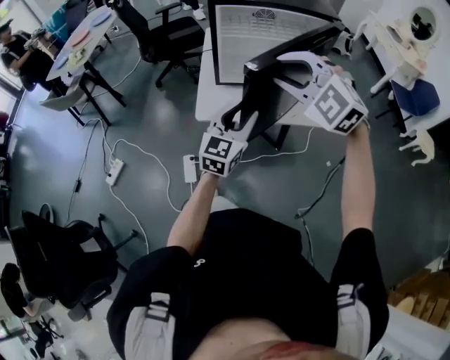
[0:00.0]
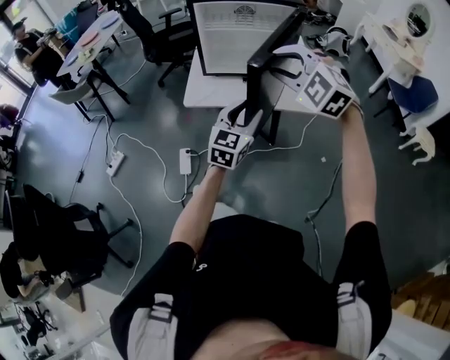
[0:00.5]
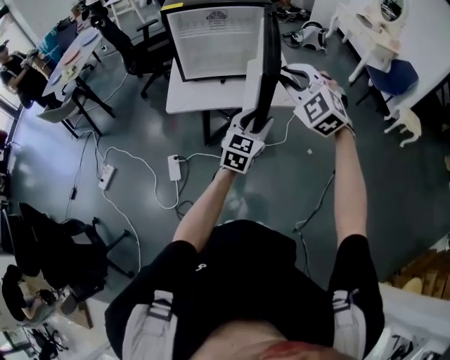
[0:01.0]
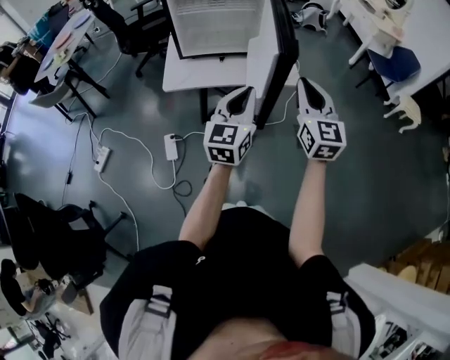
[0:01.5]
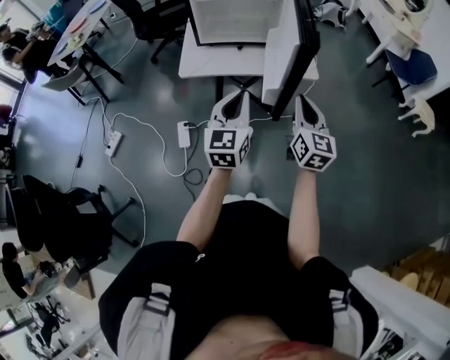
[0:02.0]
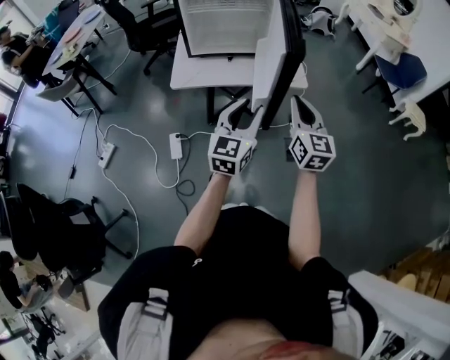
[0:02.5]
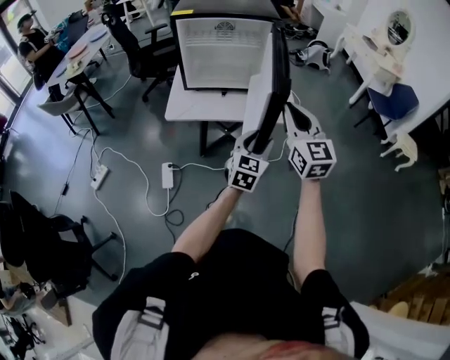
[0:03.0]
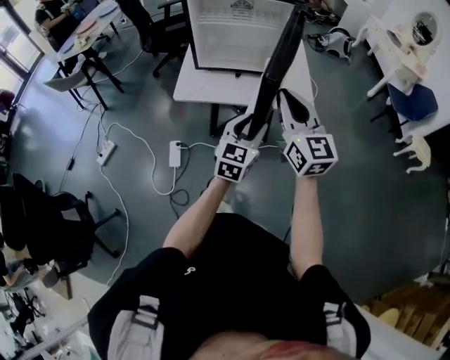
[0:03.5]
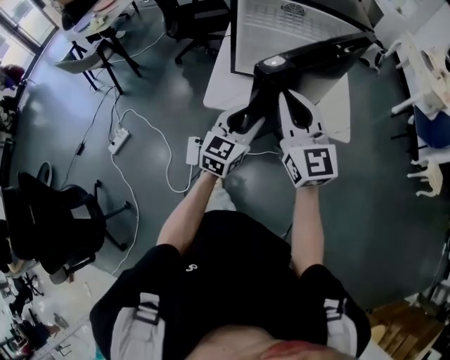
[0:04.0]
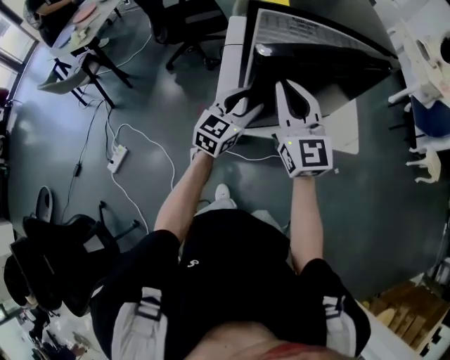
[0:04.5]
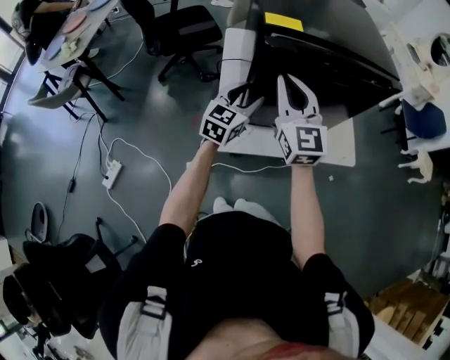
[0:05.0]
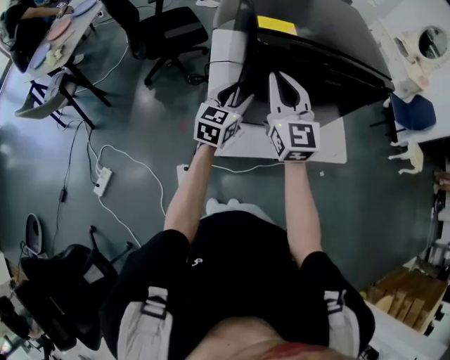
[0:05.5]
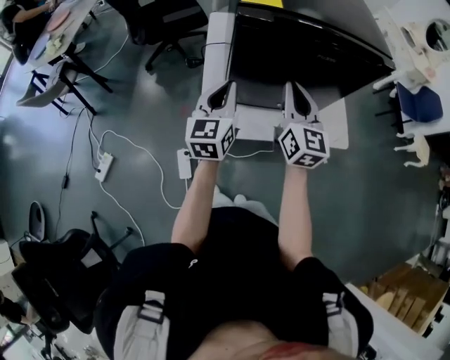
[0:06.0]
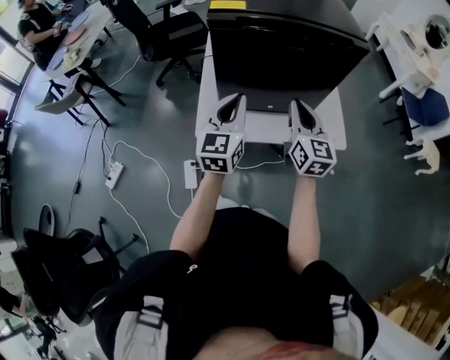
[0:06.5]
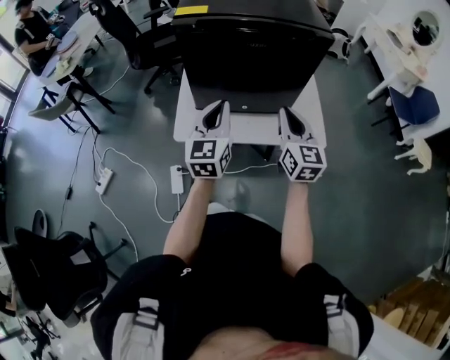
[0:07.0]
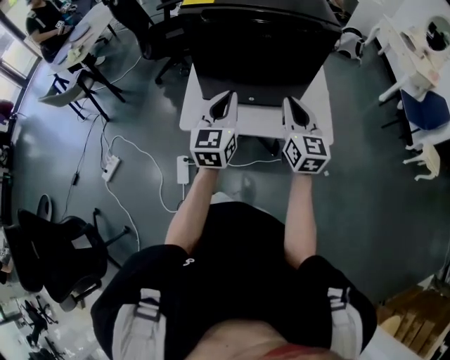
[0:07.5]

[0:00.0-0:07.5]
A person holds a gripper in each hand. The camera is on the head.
0:00.0 to 0:02.0: The left gripper goes roughly 20 cm backward and to the right, and closes. Meanwhile the right gripper moves to the right, backward and downward, roughly 30 cm, rotates around the line of its fingers by about 70 degrees, clockwise from behind, and closes up.
0:02.0 to 0:04.0: The right gripper shifts roughly 30 cm to the left, forward and upward, and swivels approximately 30 degrees. The left gripper shifts some 20 cm forward and to the left, and opens up.
0:04.0 to 0:05.5: Both grippers move forward and to the left, approximately 30 cm.
0:05.5 to 0:07.5: The left gripper travels backward and to the right by approximately 20 cm, turns by about 20 degrees, and closes its fingers. Meanwhile the right gripper shifts roughly 30 cm to the right and backward.

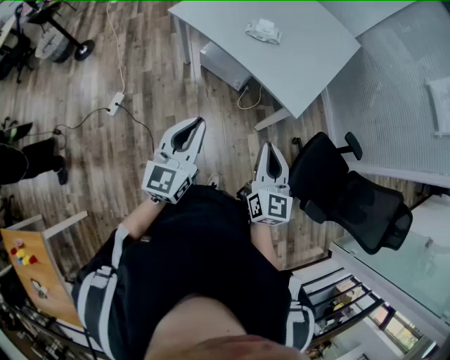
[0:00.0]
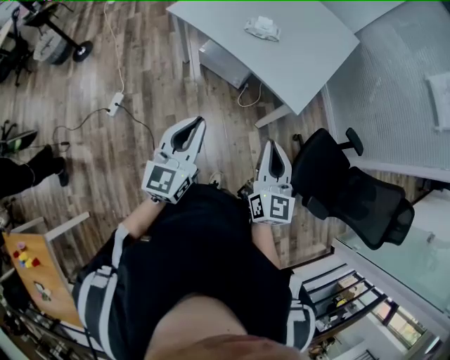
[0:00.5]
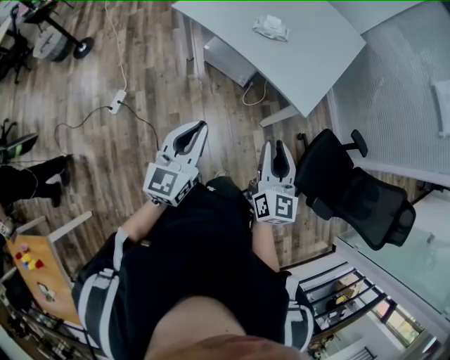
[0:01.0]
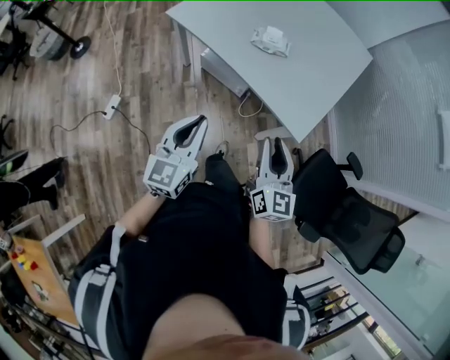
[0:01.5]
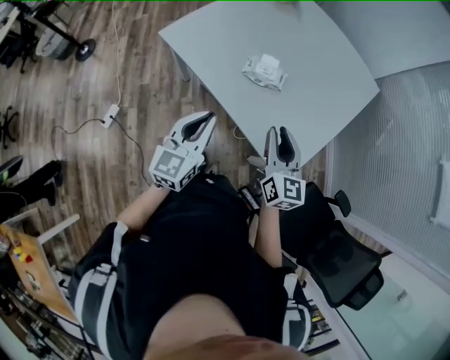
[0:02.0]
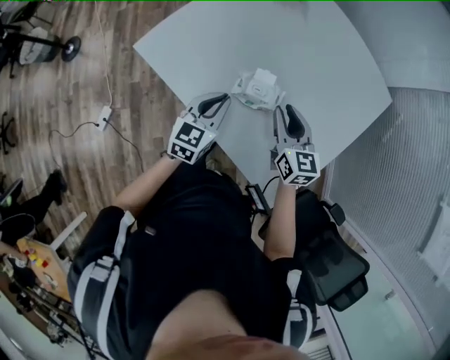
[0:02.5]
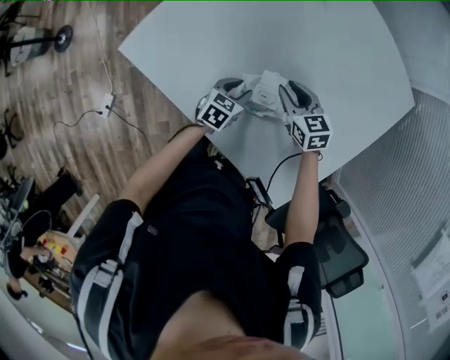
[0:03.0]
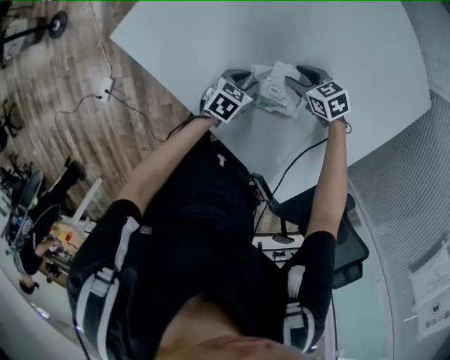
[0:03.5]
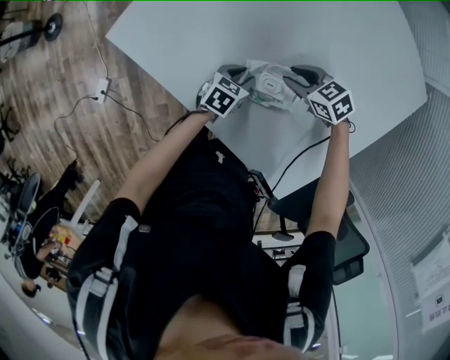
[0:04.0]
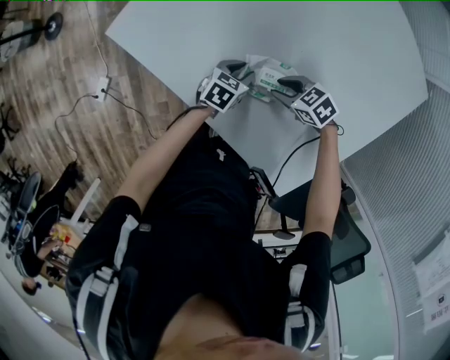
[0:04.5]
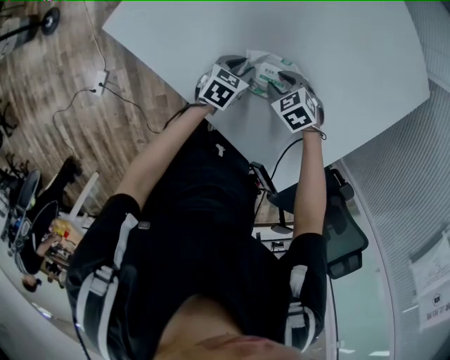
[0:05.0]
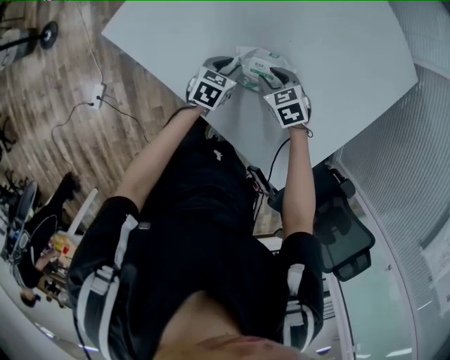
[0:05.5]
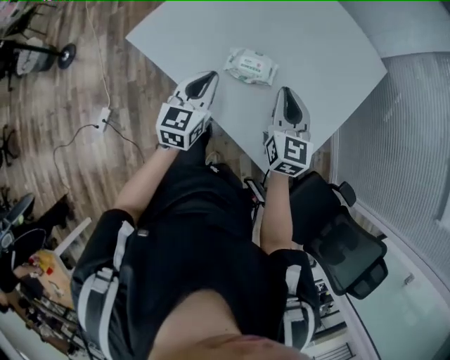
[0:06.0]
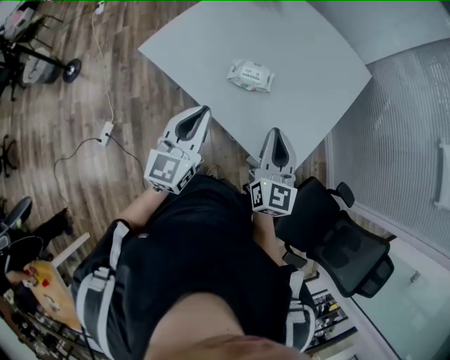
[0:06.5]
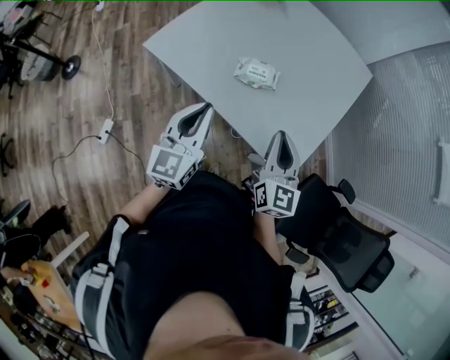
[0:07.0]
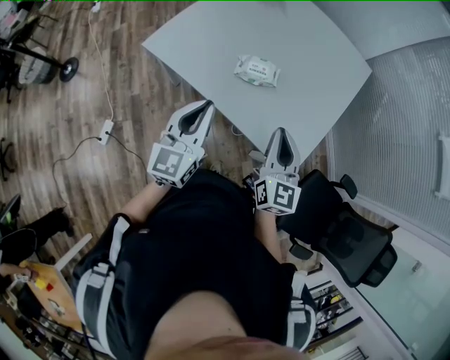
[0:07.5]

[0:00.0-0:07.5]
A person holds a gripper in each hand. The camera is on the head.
0:00.0 to 0:02.0: The two grippers go some 40 cm forward. The right gripper opens.
0:02.0 to 0:04.0: The two grippers travel together, about 40 cm. The left gripper points its fingers some 40 degrees further downward, and opens up. The right gripper angles its fingers downward, by about 40 degrees.
0:04.0 to 0:05.5: The right gripper shifts by roughly 10 cm, and changes its angle by approximately 20 degrees.
0:05.5 to 0:07.5: The two grippers go some 50 cm upward and backward. The left gripper tilts its fingers about 40 degrees upward, and closes up. Meanwhile the right gripper tips its fingers upward by about 50 degrees, and closes up.

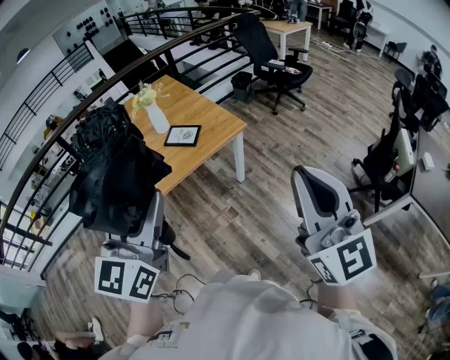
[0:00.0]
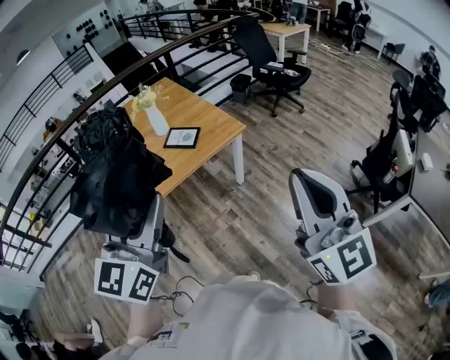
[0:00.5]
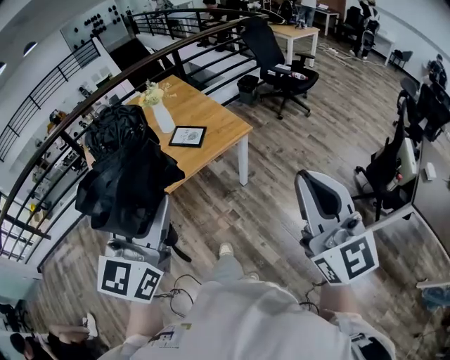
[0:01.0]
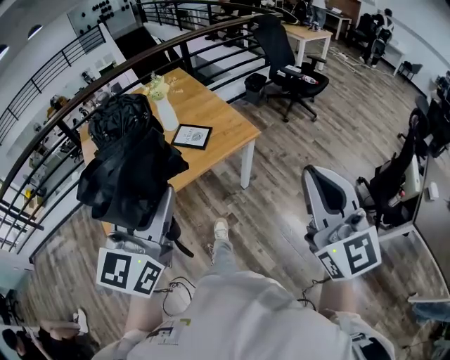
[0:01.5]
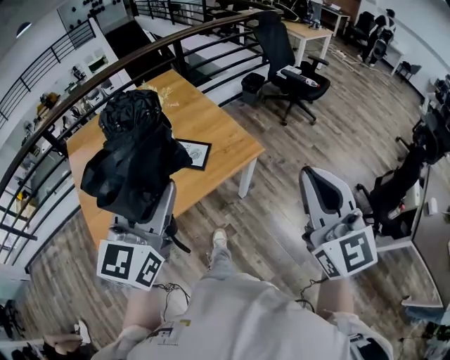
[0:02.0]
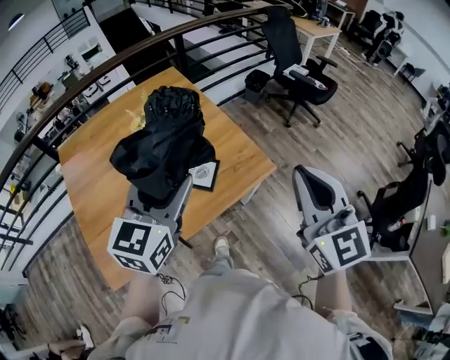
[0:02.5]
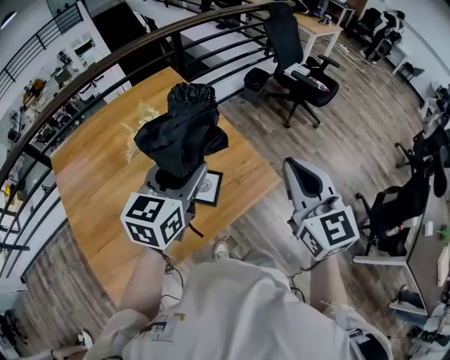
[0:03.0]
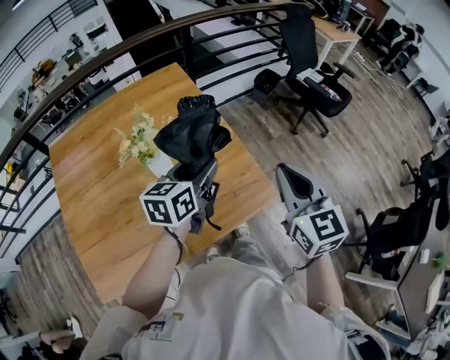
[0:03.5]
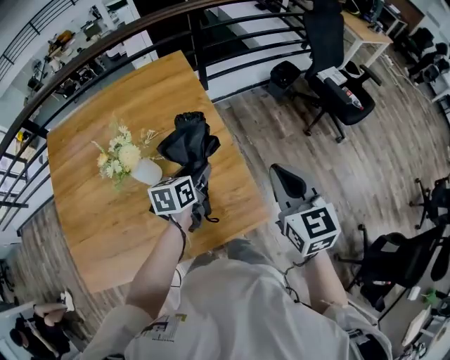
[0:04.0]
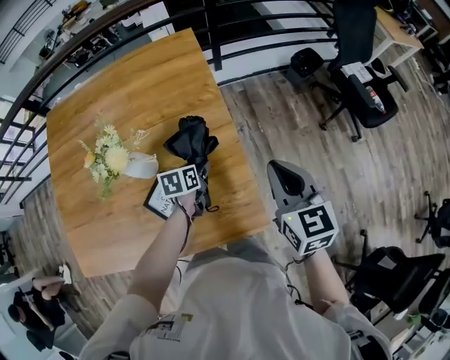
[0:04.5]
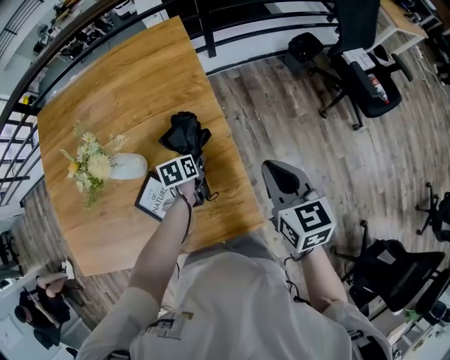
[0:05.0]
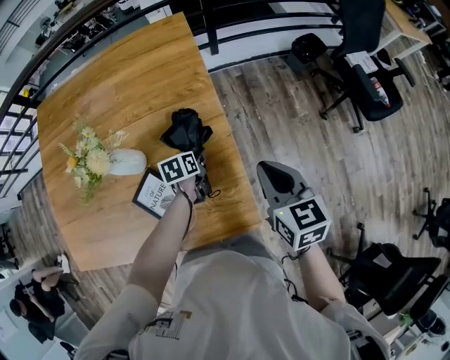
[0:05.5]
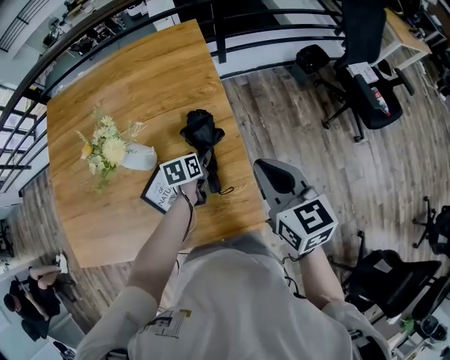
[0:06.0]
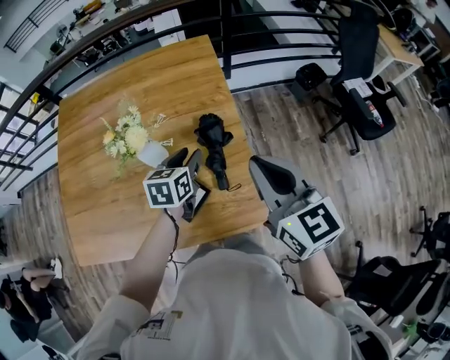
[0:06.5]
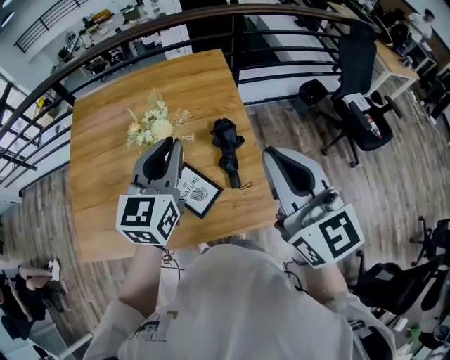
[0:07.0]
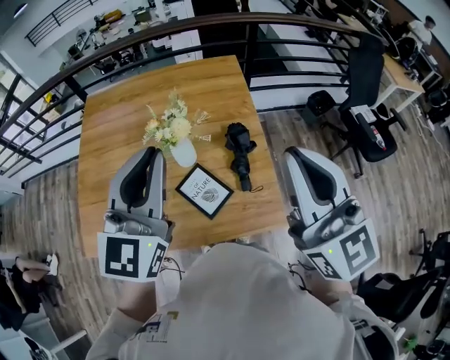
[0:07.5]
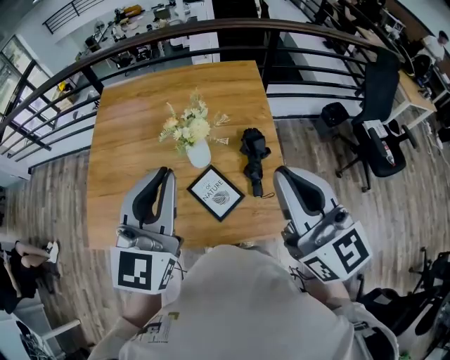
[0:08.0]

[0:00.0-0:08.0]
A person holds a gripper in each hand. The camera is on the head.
0:00.0 to 0:02.0: Both grippers travel together forward, roughly 25 cm.
0:02.0 to 0:04.0: The pair of grippers is taken forward, approximately 50 cm. The right gripper rotates about 30 degrees, while the left gripper shifts roughly 30 cm downward, and tilts its fingers about 40 degrees downward.
0:04.0 to 0:06.0: The left gripper goes roughly 15 cm downward, and rotates approximately 20 degrees. Meanwhile the right gripper shifts about 10 cm forward and downward, and changes its angle by approximately 20 degrees.
0:06.0 to 0:08.0: The left gripper heads upward and to the left, covering roughly 50 cm, tips its fingers upward by roughly 50 degrees, and closes up; the right gripper shifts approximately 30 cm upward, to the left and backward, and changes its angle by approximately 30 degrees.

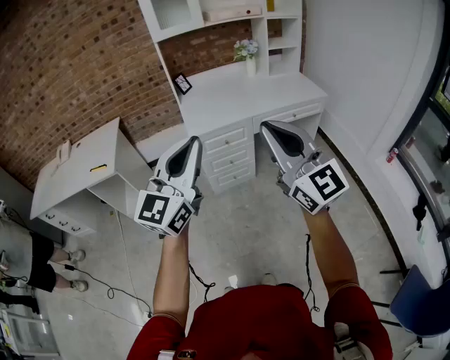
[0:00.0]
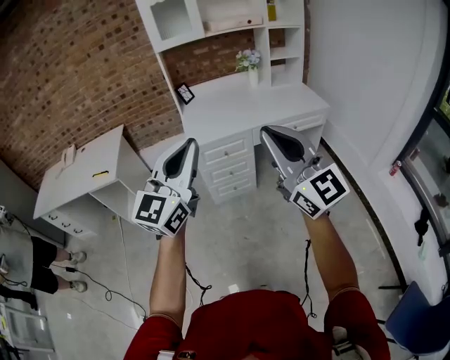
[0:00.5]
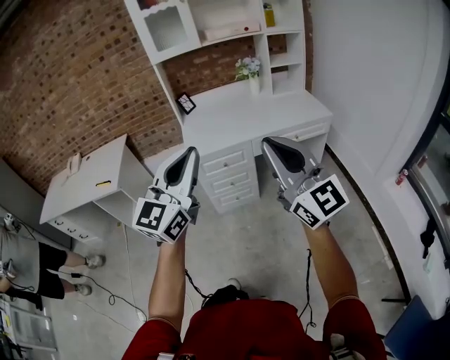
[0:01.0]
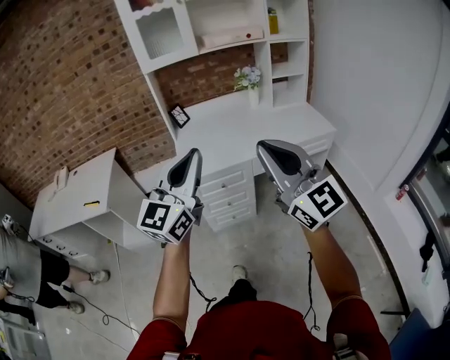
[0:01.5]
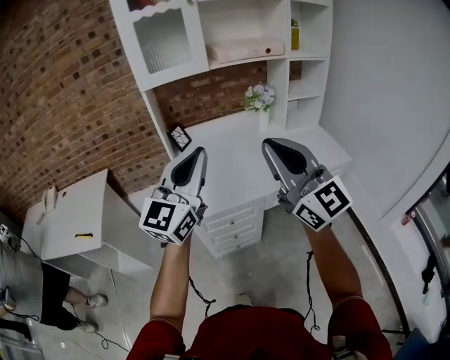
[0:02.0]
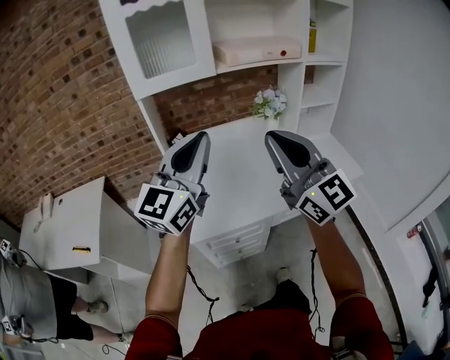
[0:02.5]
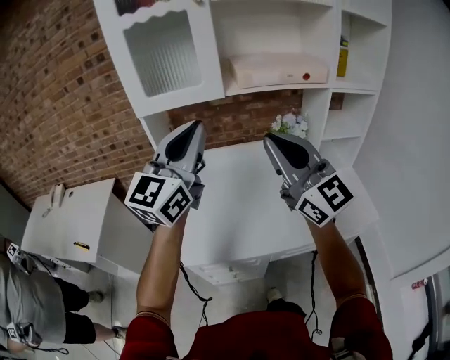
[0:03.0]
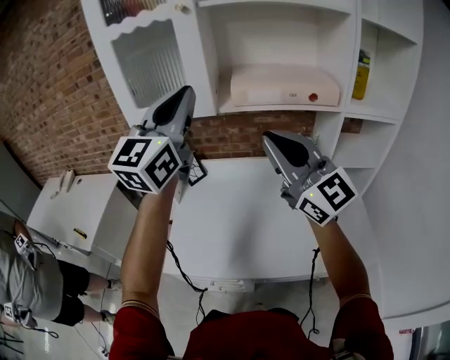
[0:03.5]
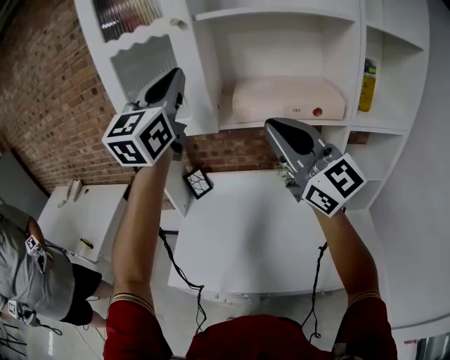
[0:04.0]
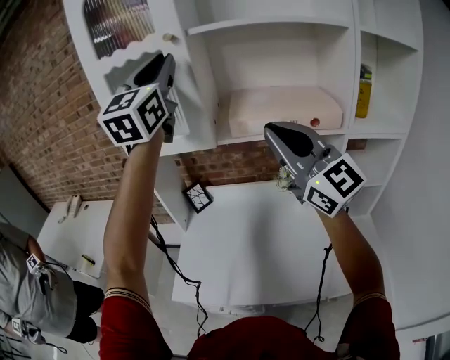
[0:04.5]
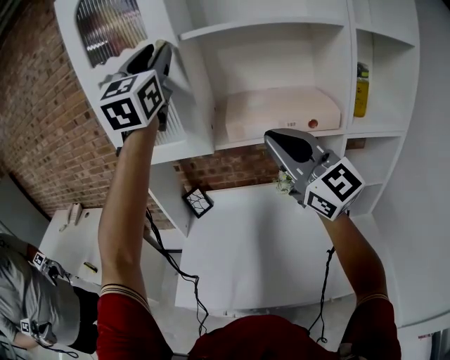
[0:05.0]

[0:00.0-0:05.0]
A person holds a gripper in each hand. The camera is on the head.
0:00.0 to 0:02.5: The two grippers travel together, forward, roughly 50 cm.
0:02.5 to 0:05.0: The right gripper ends up roughly 35 cm from where it was, and changes its angle by some 20 degrees; the left gripper moves some 50 cm, changes its angle by approximately 40 degrees, and opens up.
